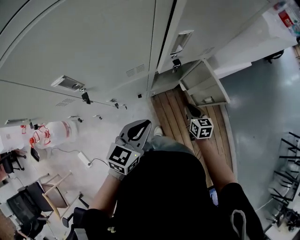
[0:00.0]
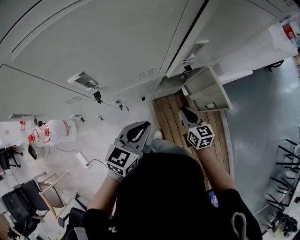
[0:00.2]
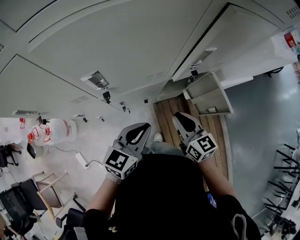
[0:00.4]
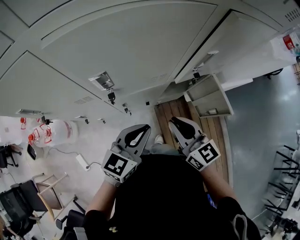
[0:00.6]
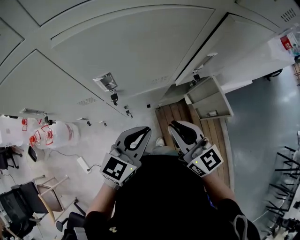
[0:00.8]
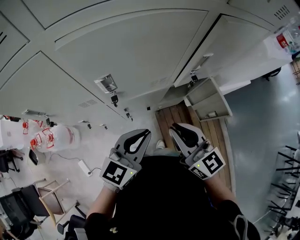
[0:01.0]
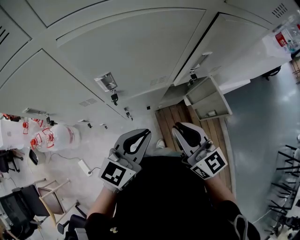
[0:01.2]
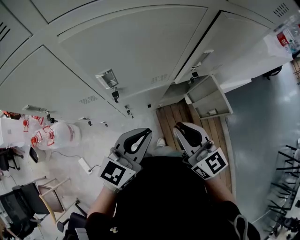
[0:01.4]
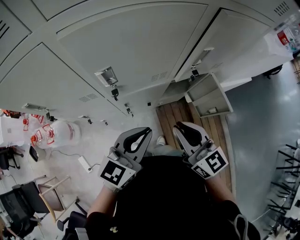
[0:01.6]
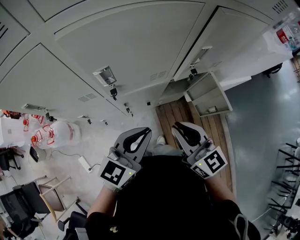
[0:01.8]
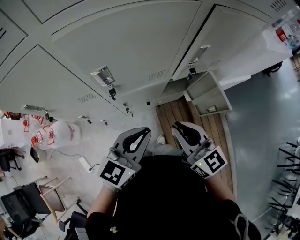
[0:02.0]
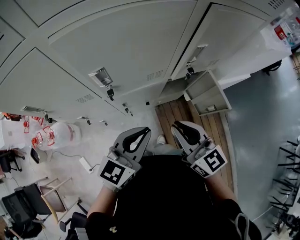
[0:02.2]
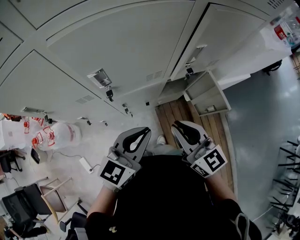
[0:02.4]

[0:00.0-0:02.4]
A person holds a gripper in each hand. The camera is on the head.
0:00.0 to 0:01.2: The right gripper moves upward and to the left, about 40 cm, and points its fingers roughly 30 degrees further upward; the left gripper heads upward and to the left, covering approximately 15 cm.
0:01.2 to 0:02.4: The grippers make only small movements.

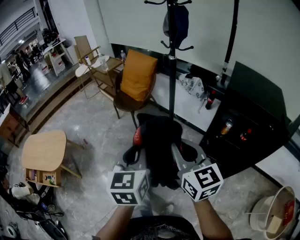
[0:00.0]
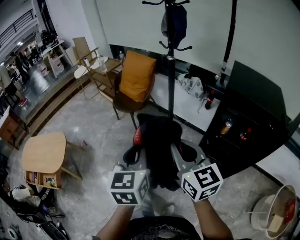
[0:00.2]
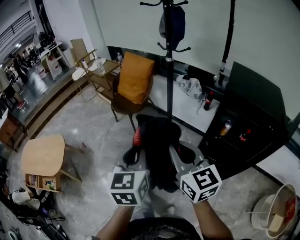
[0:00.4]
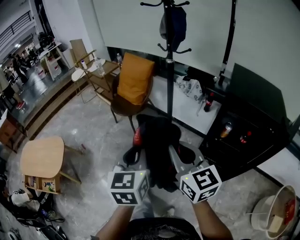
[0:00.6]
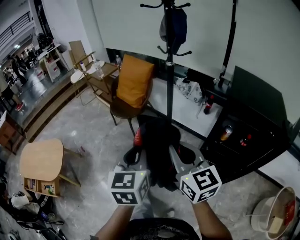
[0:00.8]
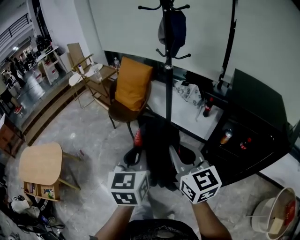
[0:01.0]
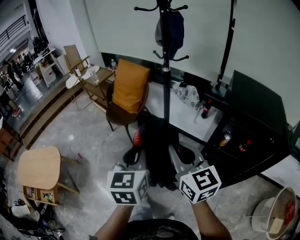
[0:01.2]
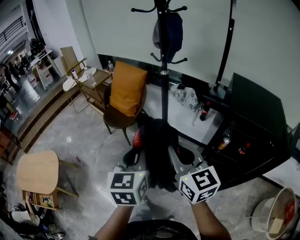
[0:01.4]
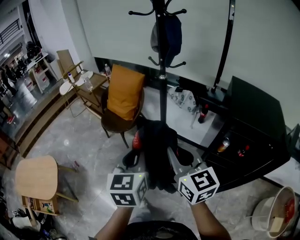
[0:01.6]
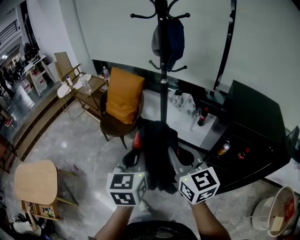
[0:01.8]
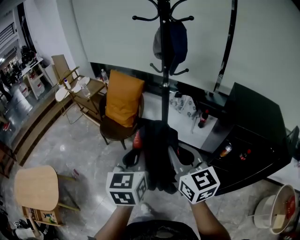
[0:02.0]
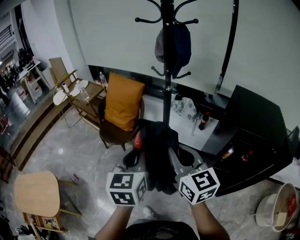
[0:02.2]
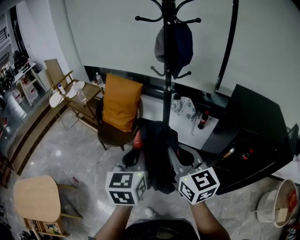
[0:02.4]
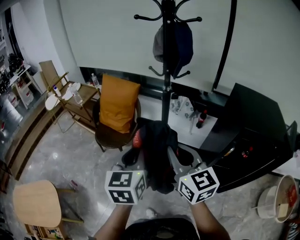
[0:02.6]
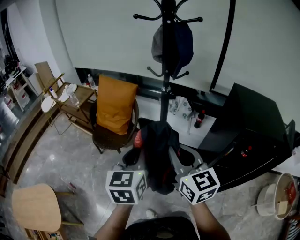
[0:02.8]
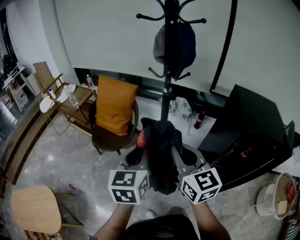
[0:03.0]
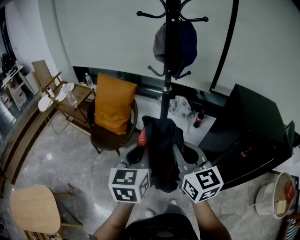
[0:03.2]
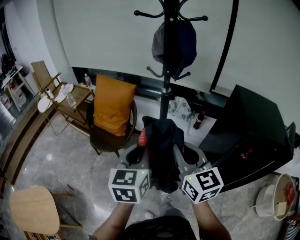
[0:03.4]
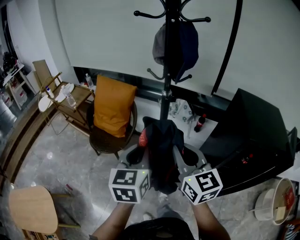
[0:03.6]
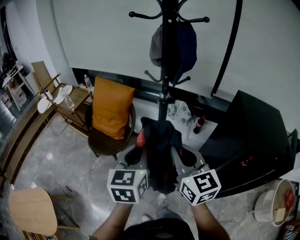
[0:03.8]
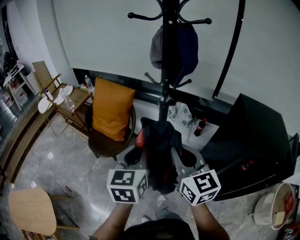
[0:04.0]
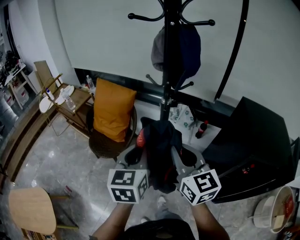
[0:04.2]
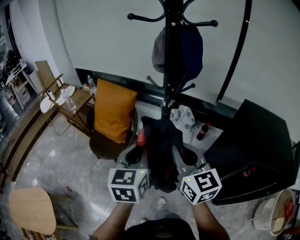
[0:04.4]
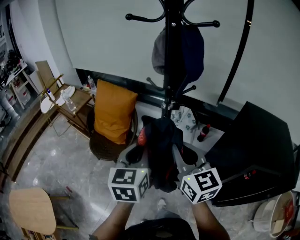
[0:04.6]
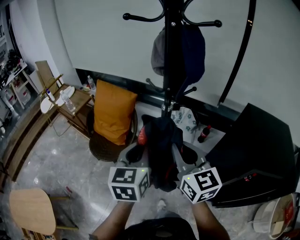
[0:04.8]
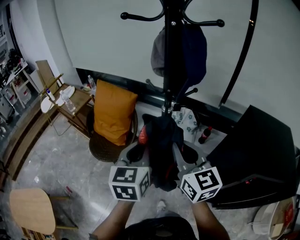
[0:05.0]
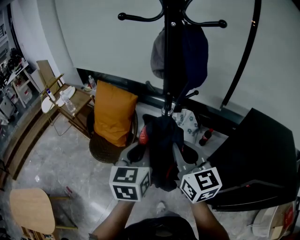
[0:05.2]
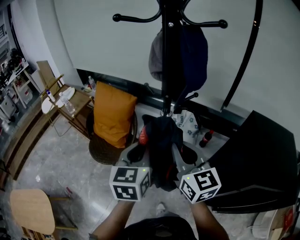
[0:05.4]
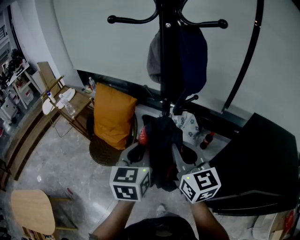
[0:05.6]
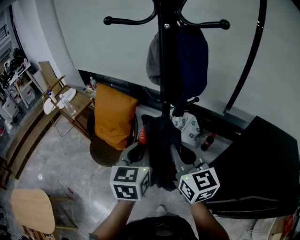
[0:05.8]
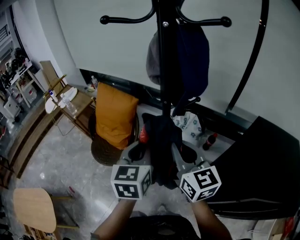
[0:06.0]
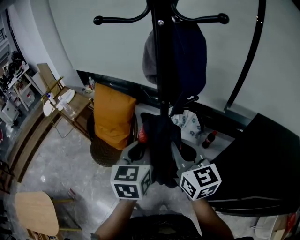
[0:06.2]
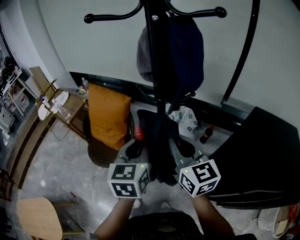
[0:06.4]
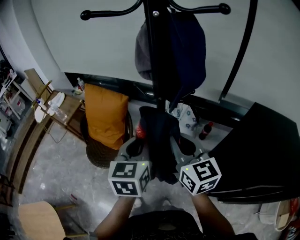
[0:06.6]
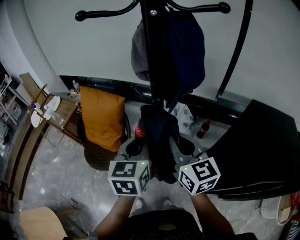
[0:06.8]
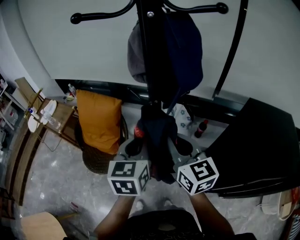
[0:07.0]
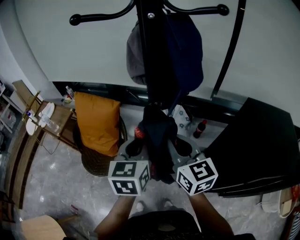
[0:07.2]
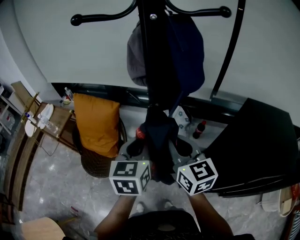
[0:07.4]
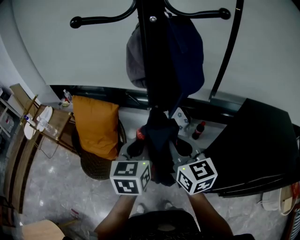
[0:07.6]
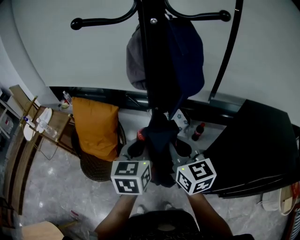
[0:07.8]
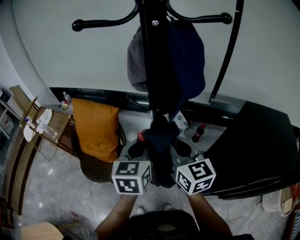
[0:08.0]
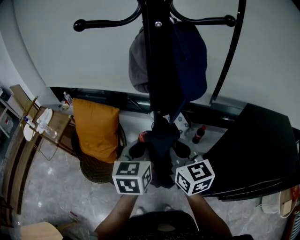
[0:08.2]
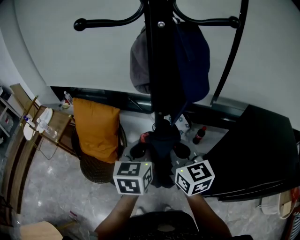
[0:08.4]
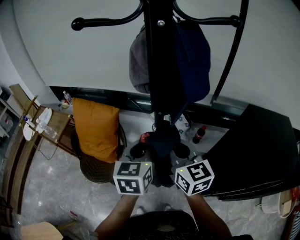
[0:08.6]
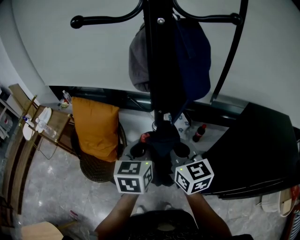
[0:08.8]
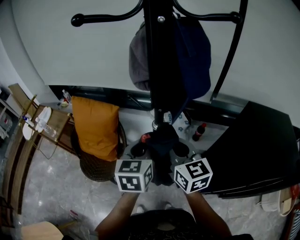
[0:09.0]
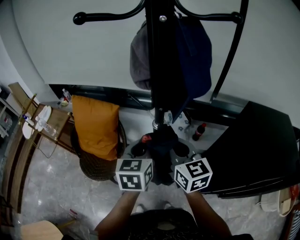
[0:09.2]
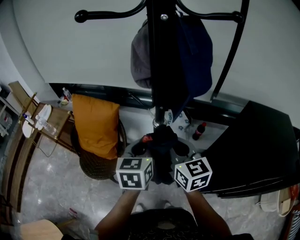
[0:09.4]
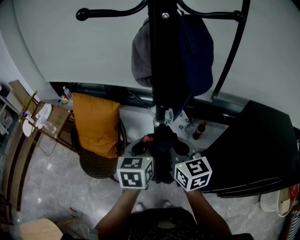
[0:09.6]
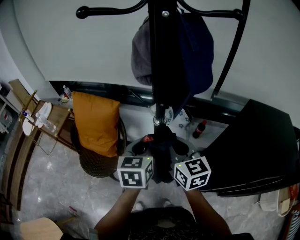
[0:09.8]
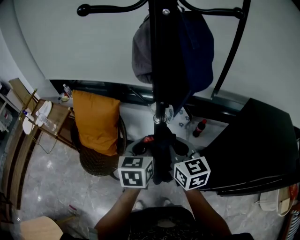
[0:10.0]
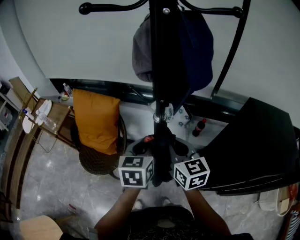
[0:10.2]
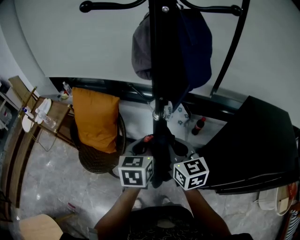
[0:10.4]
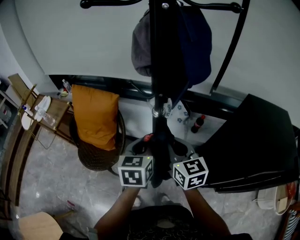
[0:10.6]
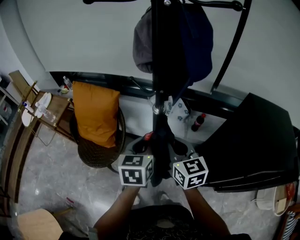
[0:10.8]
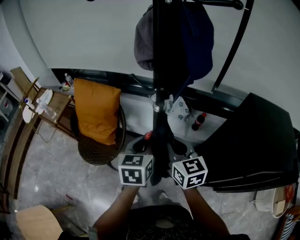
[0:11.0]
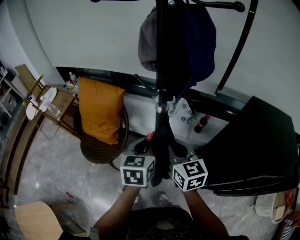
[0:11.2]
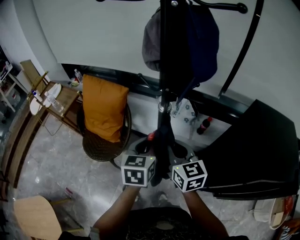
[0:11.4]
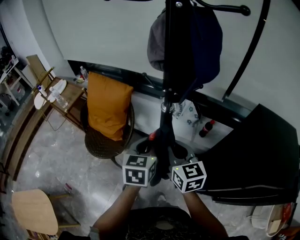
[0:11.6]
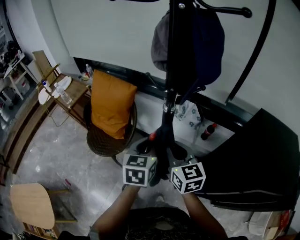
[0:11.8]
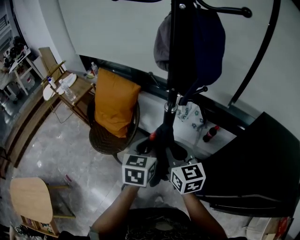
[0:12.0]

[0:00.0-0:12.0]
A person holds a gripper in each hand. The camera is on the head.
0:00.0 to 0:01.6: Both grippers move forward, approximately 15 cm.
0:01.6 to 0:03.0: Both grippers move forward and to the left, some 15 cm.
0:03.0 to 0:04.4: The two grippers go roughly 10 cm forward.
0:04.4 to 0:06.0: Both grippers move forward, some 10 cm.
0:06.0 to 0:07.6: The left gripper moves forward, approximately 5 cm.
0:07.6 to 0:09.0: The grippers stay close to where they were, moving slightly.
0:09.0 to 0:10.4: The grippers stay close to where they were, moving slightly.
0:10.4 to 0:12.0: The grippers stay close to where they were, moving slightly.

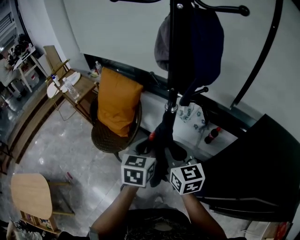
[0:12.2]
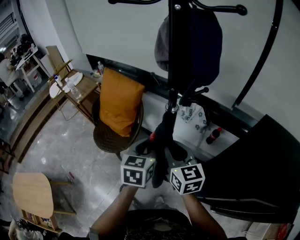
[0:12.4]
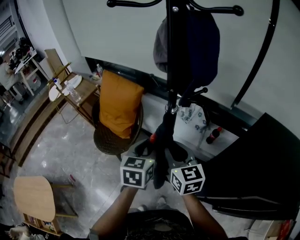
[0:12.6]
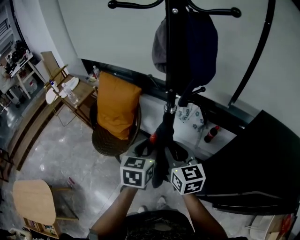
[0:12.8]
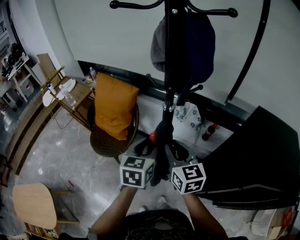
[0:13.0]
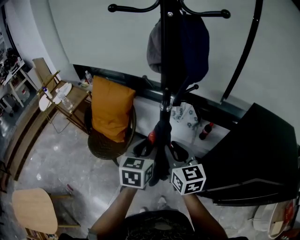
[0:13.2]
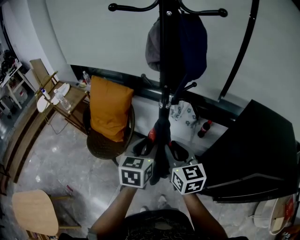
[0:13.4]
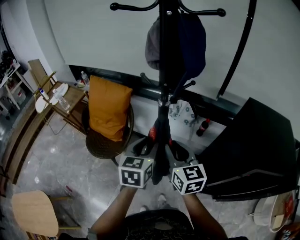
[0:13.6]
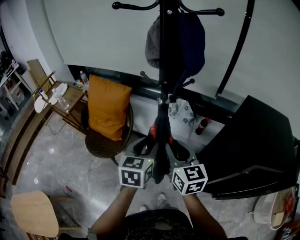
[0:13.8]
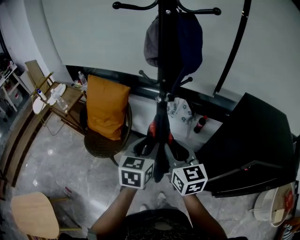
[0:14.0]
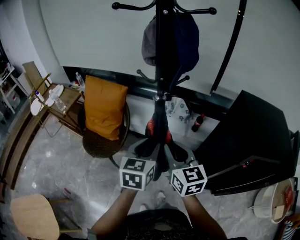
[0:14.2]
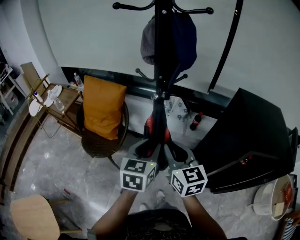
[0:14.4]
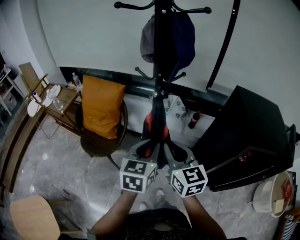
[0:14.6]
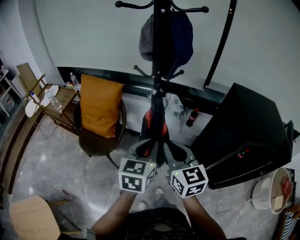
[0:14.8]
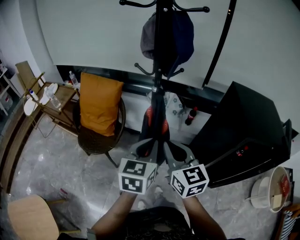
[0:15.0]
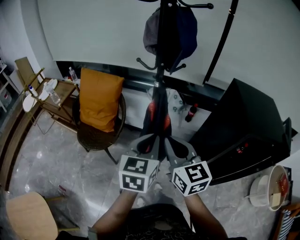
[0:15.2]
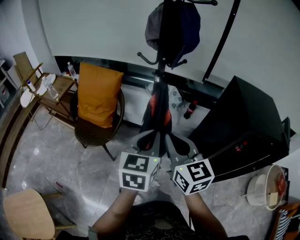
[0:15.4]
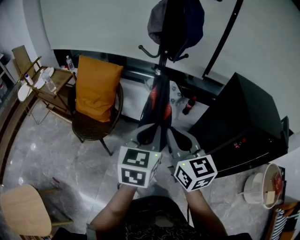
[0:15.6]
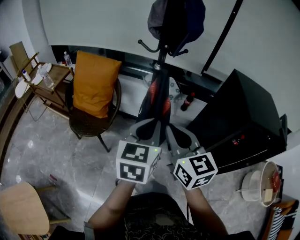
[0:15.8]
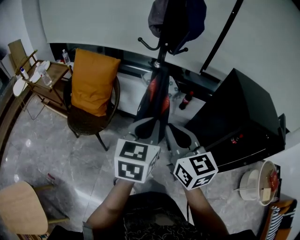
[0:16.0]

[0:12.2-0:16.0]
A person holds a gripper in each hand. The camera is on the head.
0:12.2 to 0:13.4: The left gripper opens its fingers.
0:13.4 to 0:14.8: The two grippers go about 10 cm backward. The left gripper closes.
0:14.8 to 0:16.0: The right gripper travels backward by roughly 5 cm.

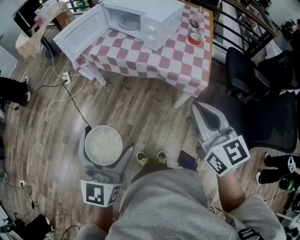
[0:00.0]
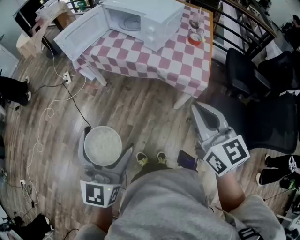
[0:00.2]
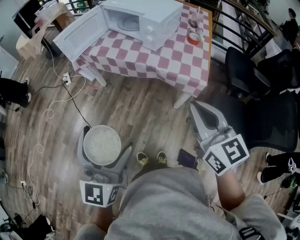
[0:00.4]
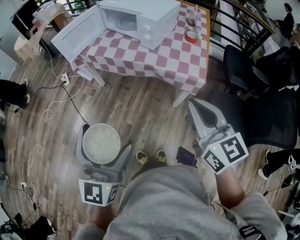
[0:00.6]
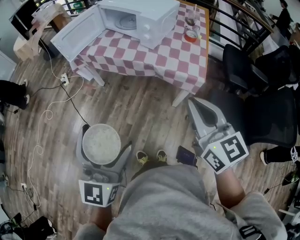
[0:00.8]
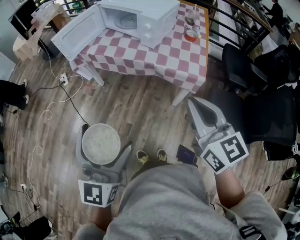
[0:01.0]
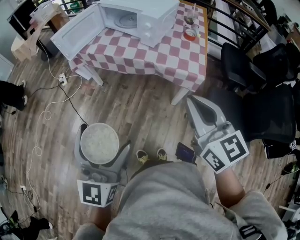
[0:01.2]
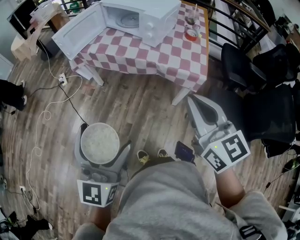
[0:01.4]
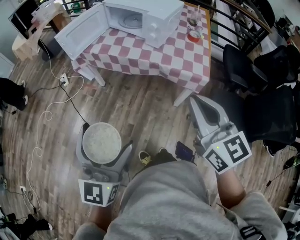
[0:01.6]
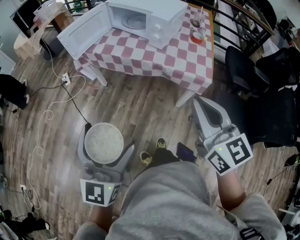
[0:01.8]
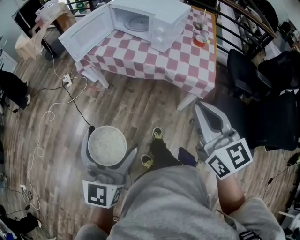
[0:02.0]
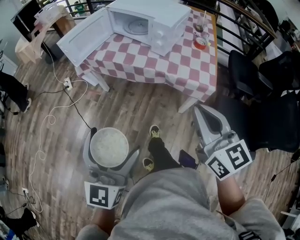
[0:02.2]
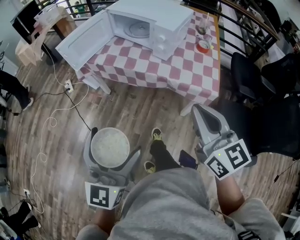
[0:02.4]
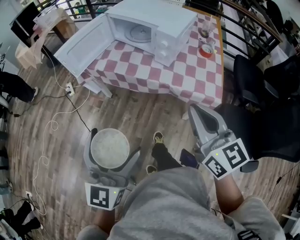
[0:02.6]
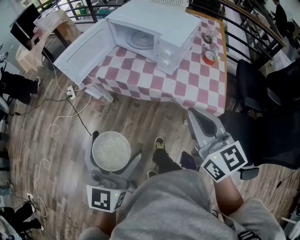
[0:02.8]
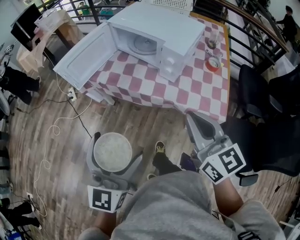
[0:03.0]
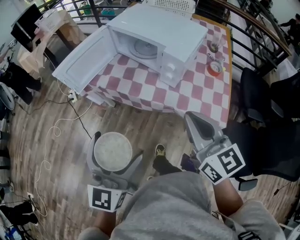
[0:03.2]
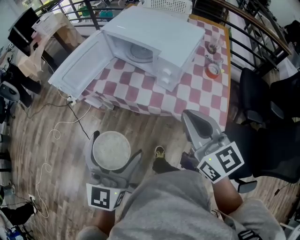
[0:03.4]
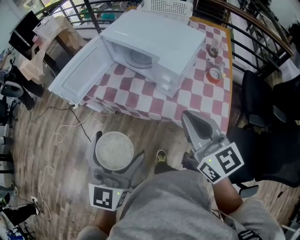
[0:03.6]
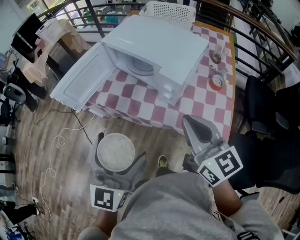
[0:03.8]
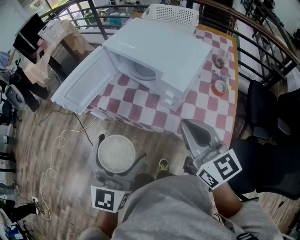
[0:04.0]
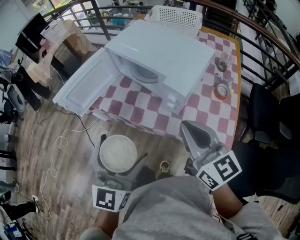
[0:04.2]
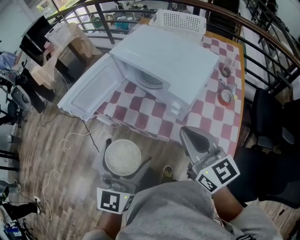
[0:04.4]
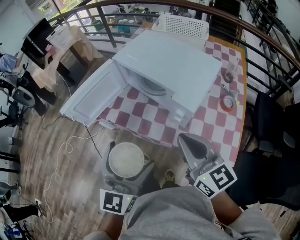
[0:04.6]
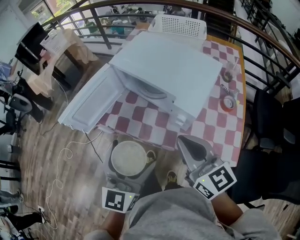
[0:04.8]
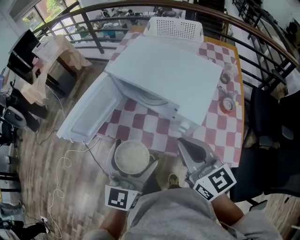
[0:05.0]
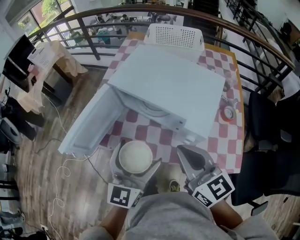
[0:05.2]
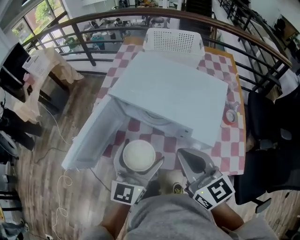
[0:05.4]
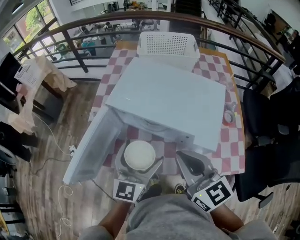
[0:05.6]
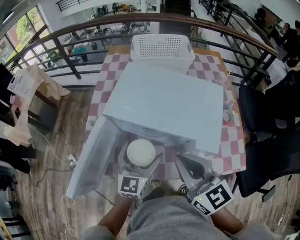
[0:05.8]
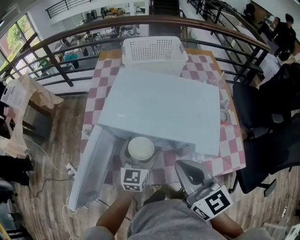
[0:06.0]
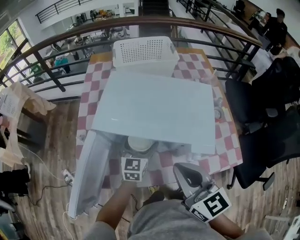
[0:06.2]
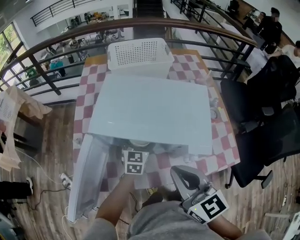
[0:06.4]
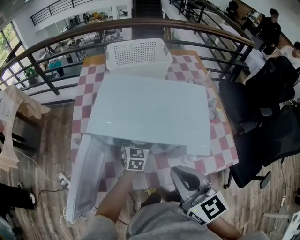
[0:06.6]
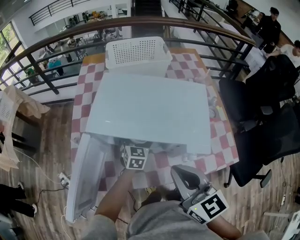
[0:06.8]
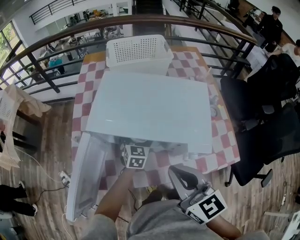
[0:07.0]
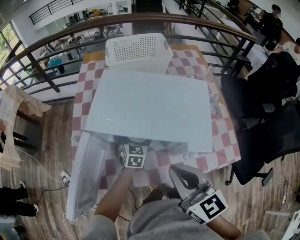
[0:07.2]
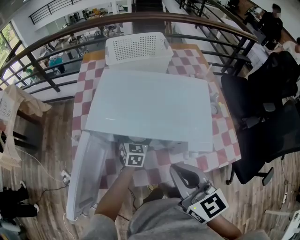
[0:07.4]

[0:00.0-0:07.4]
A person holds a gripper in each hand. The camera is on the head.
0:00.0 to 0:01.4: The grippers move only a little.
0:01.4 to 0:03.0: Both grippers move forward, approximately 20 cm.
0:03.0 to 0:04.4: Both grippers travel together forward, some 15 cm.
0:04.4 to 0:06.0: The right gripper ends up approximately 20 cm from where it was, and changes its angle by about 30 degrees; the left gripper ends up about 35 cm from where it was, and swivels approximately 30 degrees.
0:06.0 to 0:07.4: The left gripper travels downward and forward by some 10 cm, and rotates approximately 20 degrees.
